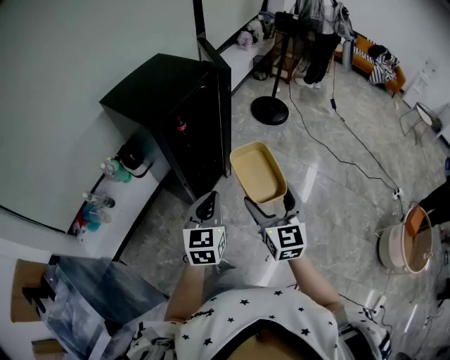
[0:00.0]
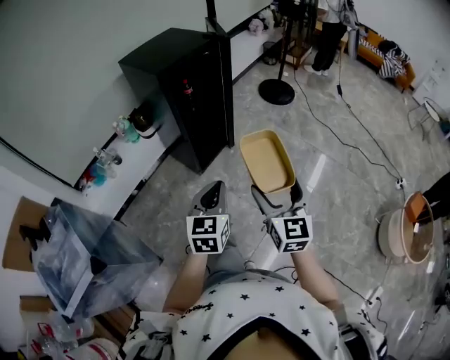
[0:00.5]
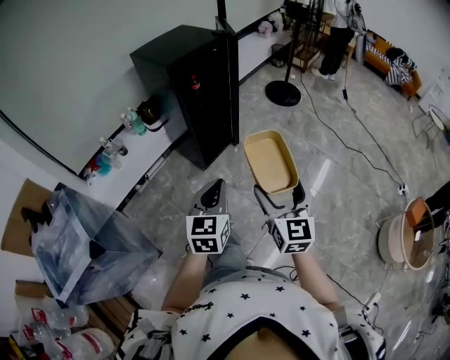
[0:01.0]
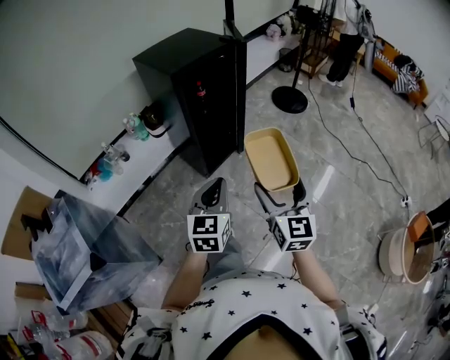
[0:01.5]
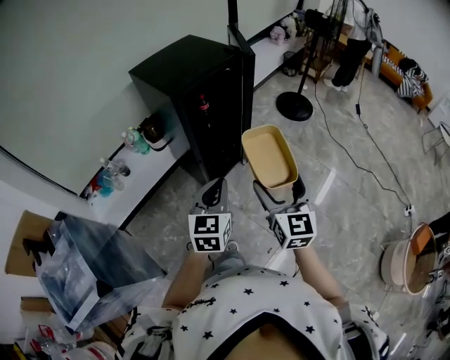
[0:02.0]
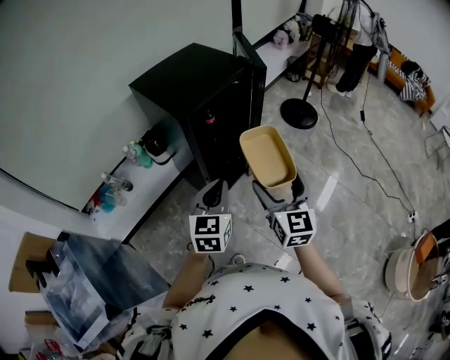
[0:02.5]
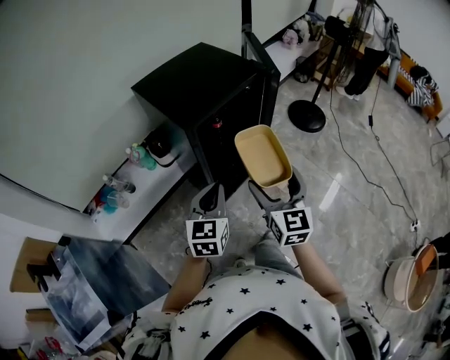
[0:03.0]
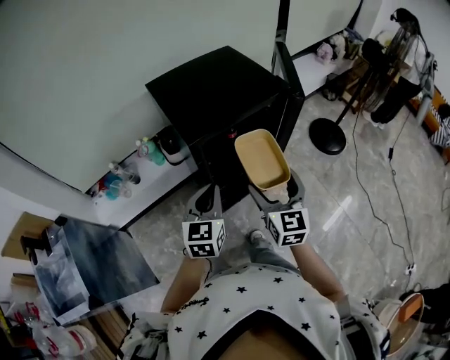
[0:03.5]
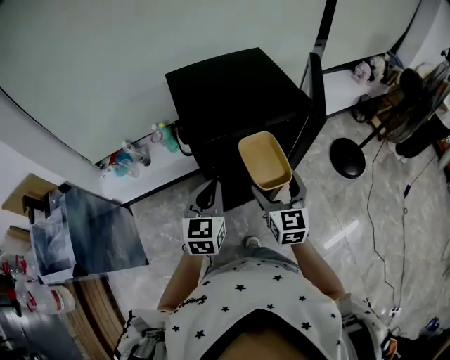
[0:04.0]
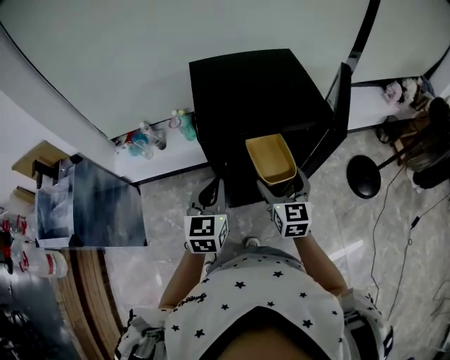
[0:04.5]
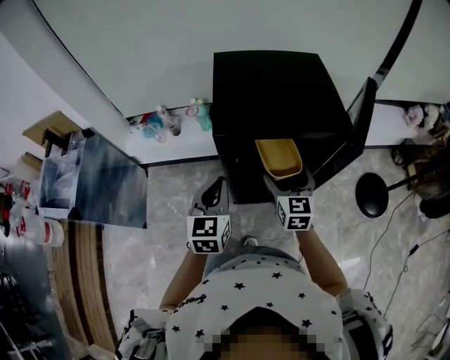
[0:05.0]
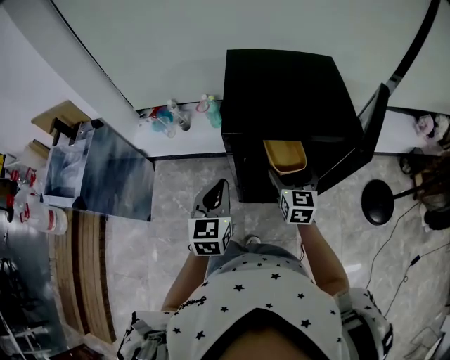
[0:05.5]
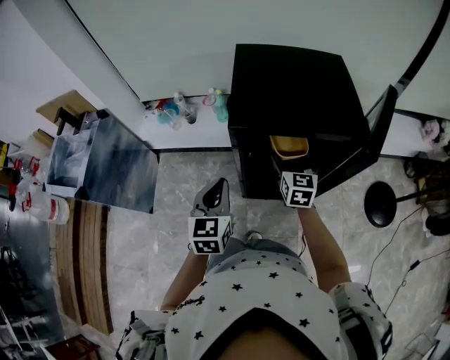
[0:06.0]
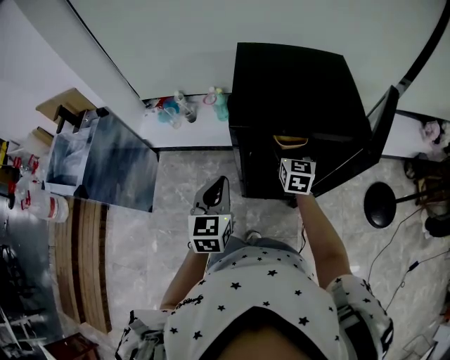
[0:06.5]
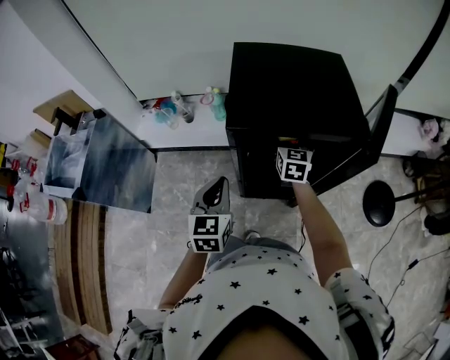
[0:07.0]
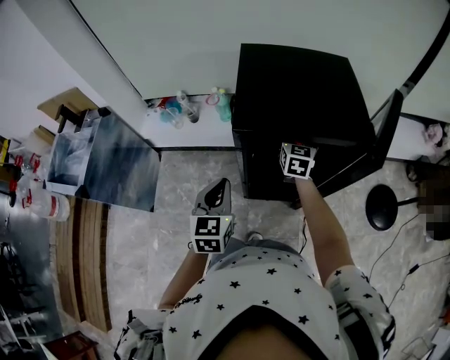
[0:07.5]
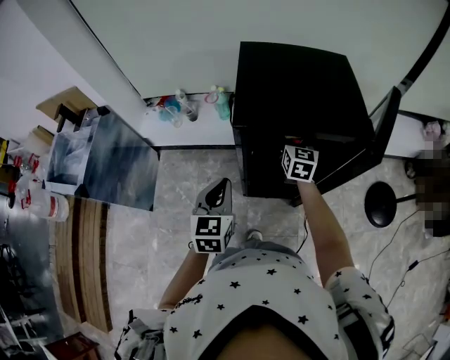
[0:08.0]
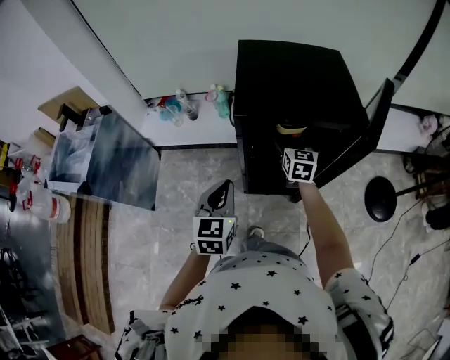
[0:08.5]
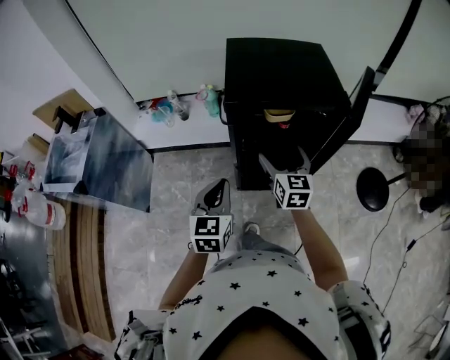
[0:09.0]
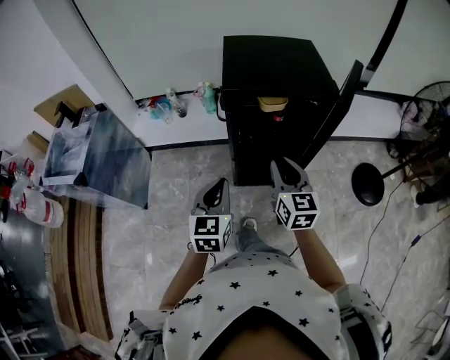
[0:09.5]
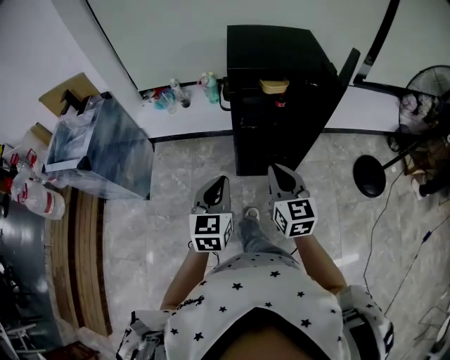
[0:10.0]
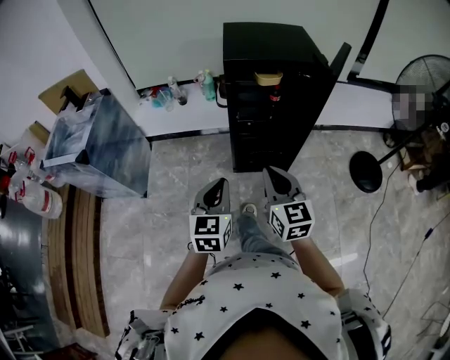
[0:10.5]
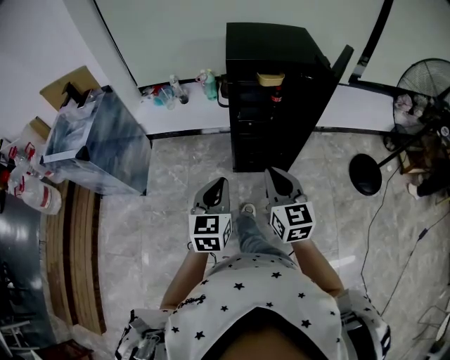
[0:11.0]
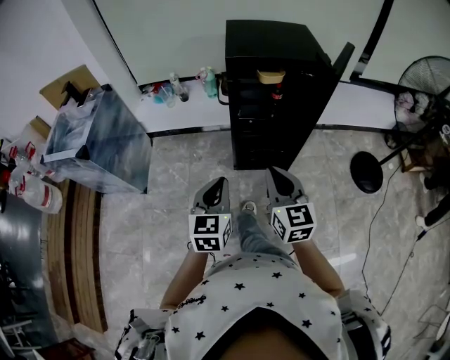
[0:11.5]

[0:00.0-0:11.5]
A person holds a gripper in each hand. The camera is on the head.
0:00.0 to 0:02.0: The left gripper moves approximately 25 cm backward and comes back. The right gripper moves some 25 cm backward and comes back.
0:02.0 to 0:04.0: The left gripper shifts by approximately 25 cm, and rotates approximately 30 degrees; the right gripper moves about 35 cm, and changes its angle by about 30 degrees.
0:04.0 to 0:06.0: The right gripper heads forward and downward, covering approximately 15 cm, while the left gripper moves roughly 5 cm, and rotates about 30 degrees.
0:06.0 to 0:07.5: The right gripper shifts roughly 10 cm forward.
0:07.5 to 0:09.5: The left gripper goes approximately 15 cm backward. The right gripper goes roughly 30 cm backward, and closes its fingers.
0:09.5 to 0:11.5: Both grippers travel together backward, approximately 15 cm.

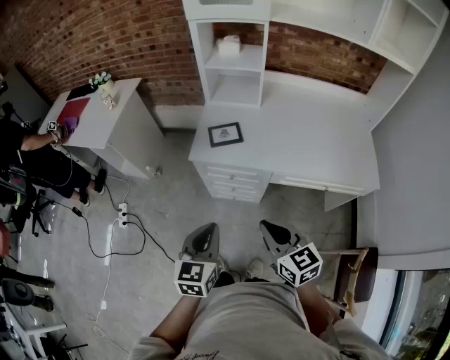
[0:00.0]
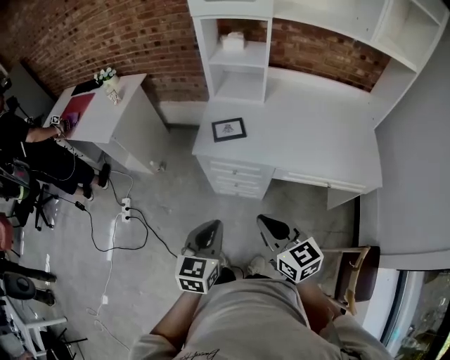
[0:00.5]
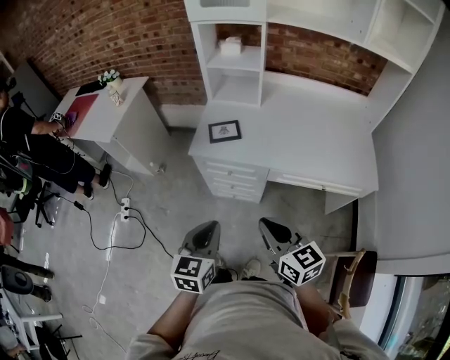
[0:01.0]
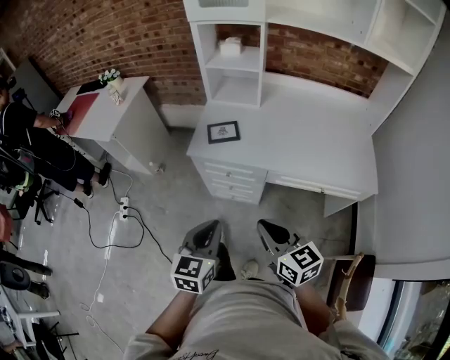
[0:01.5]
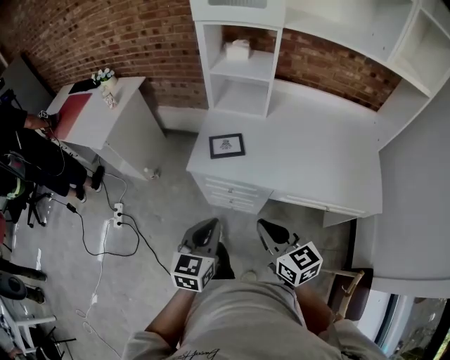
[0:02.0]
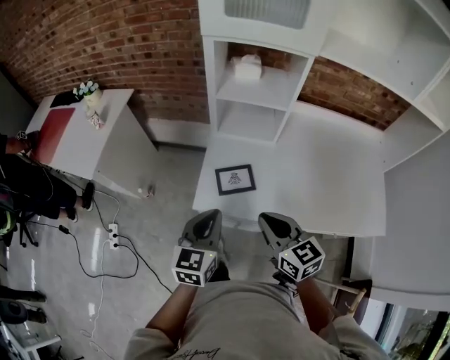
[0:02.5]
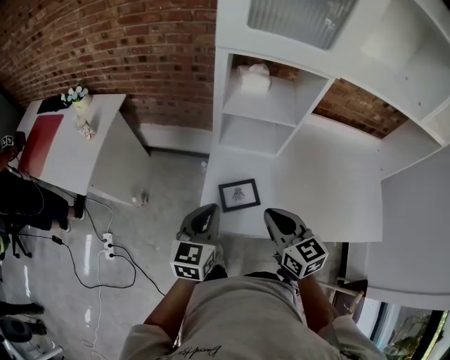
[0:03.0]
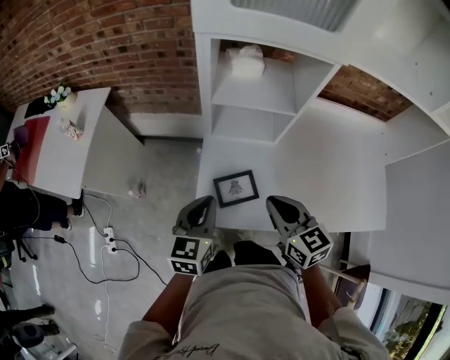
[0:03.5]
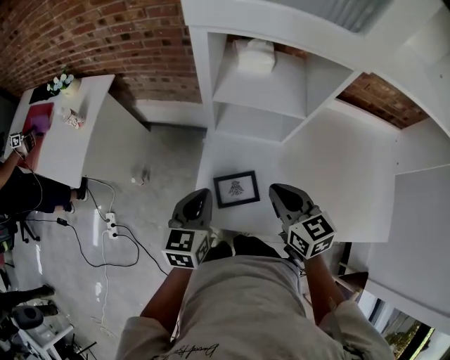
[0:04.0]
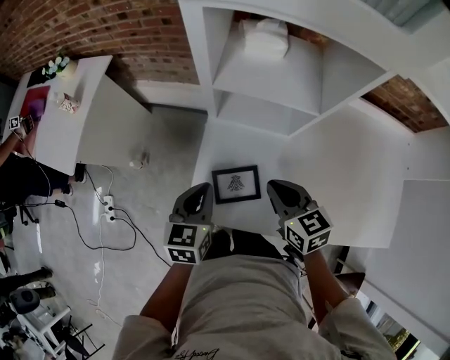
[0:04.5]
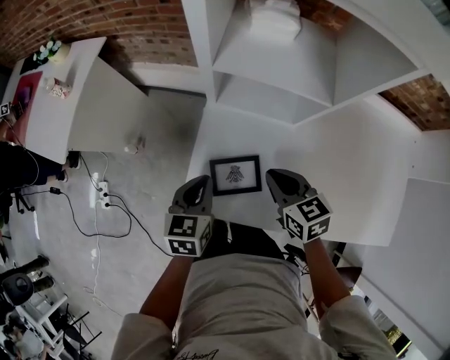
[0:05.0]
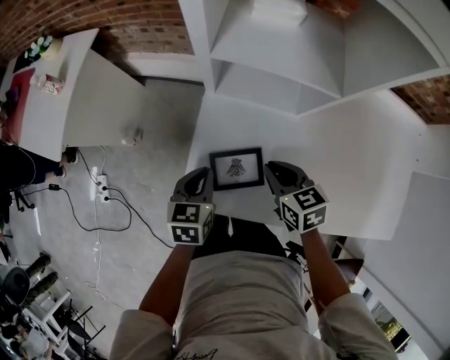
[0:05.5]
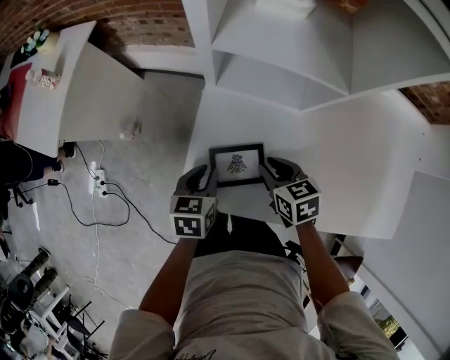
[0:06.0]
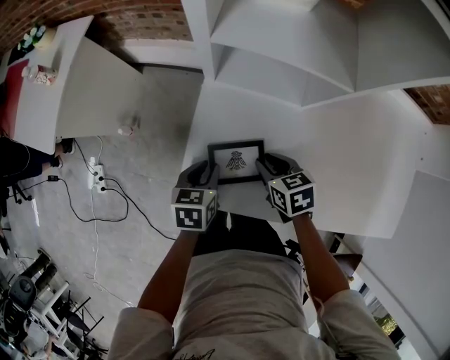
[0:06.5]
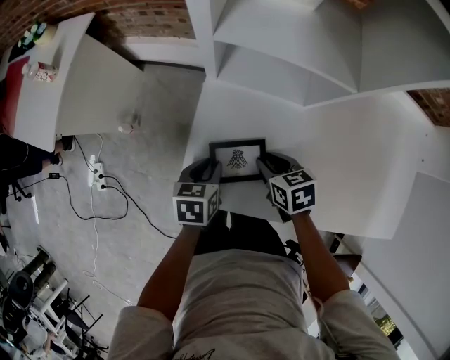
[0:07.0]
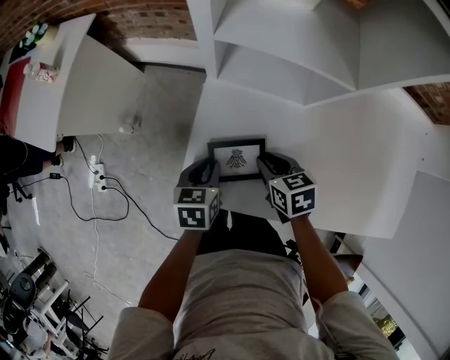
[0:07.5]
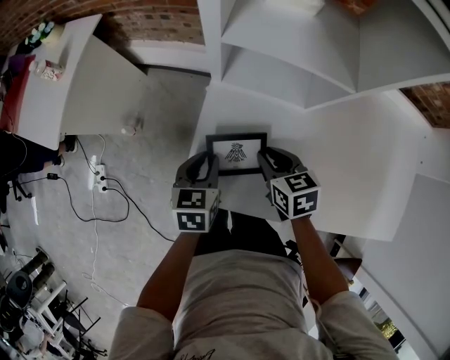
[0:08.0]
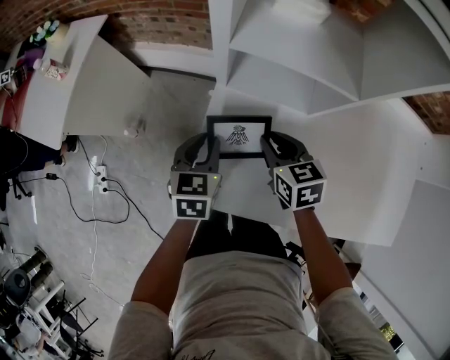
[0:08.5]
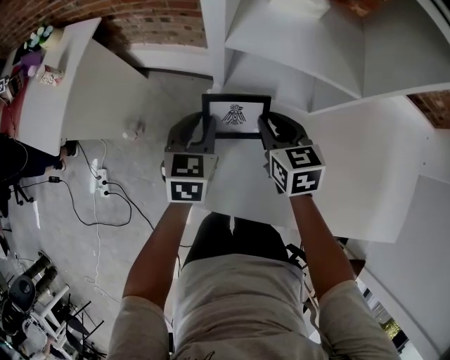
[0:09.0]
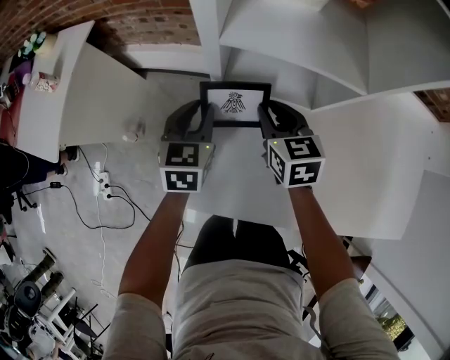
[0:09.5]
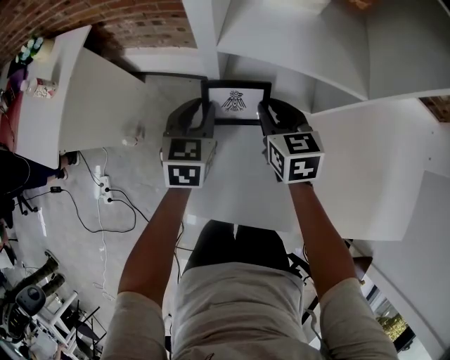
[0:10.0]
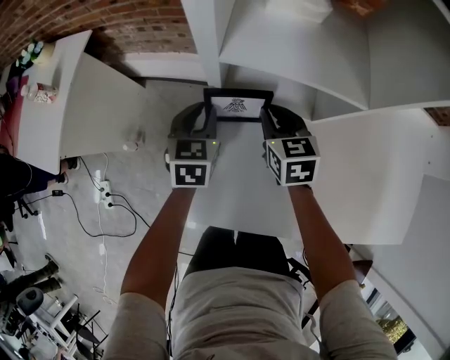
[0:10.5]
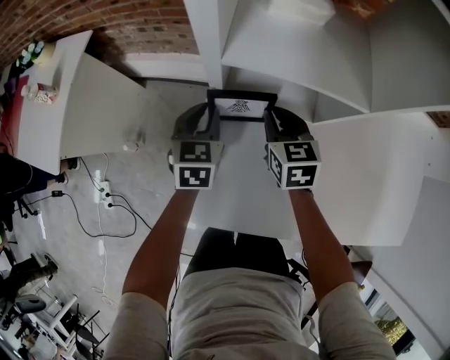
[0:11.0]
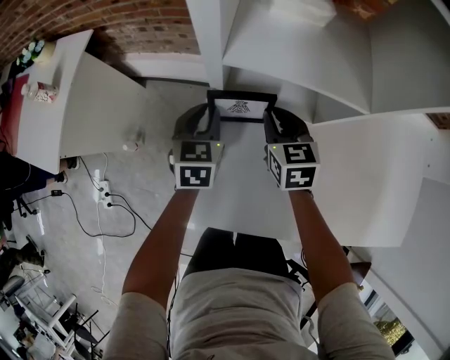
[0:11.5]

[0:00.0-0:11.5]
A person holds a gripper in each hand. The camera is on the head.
0:00.0 to 0:02.0: Both grippers travel together forward, some 10 cm.
0:02.0 to 0:04.0: Both grippers move forward, some 40 cm.
0:04.0 to 0:06.0: Both grippers move downward, about 20 cm. The left gripper turns by roughly 20 degrees; the right gripper swivels roughly 20 degrees.
0:06.0 to 0:07.5: The grippers move only a little.
0:07.5 to 0:09.5: Both grippers move forward and upward, some 15 cm. The left gripper swivels roughly 30 degrees; the right gripper changes its angle by about 20 degrees.
0:09.5 to 0:11.5: There are only small adjustments of the grippers.

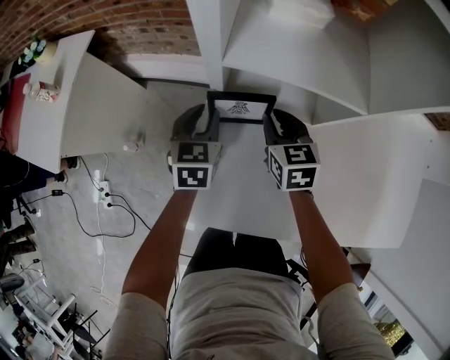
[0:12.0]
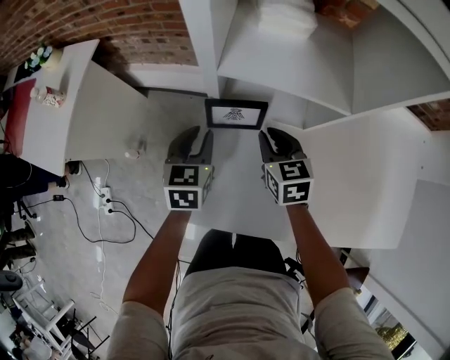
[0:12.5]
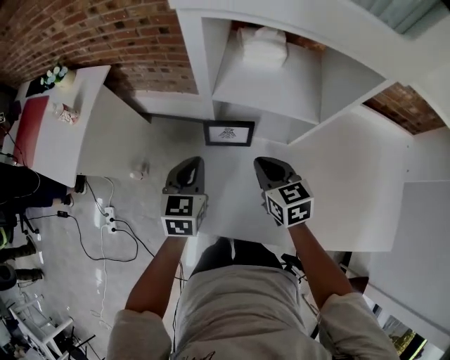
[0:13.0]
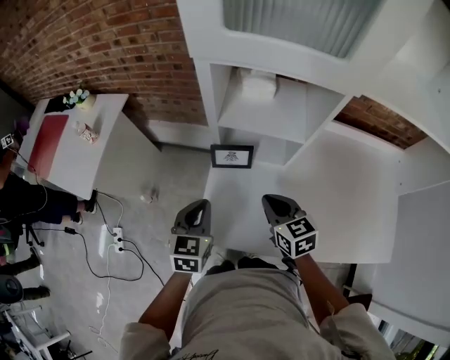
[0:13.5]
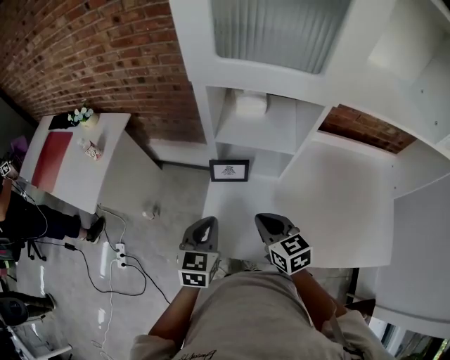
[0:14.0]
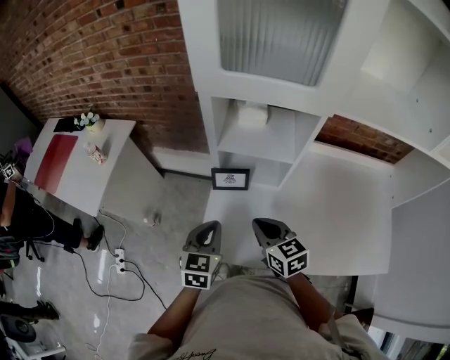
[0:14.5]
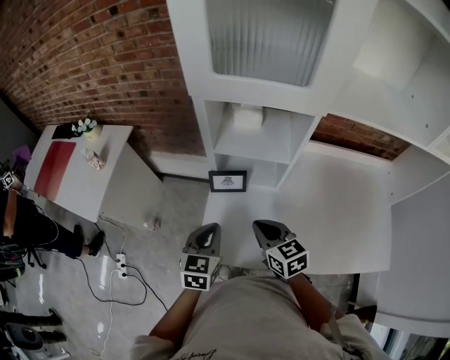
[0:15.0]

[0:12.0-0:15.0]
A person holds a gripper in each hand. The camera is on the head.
0:12.0 to 0:13.5: Both grippers move backward and upward, about 25 cm. The left gripper closes.
0:13.5 to 0:15.0: The left gripper moves approximately 5 cm. Meanwhile the right gripper moves about 5 cm.

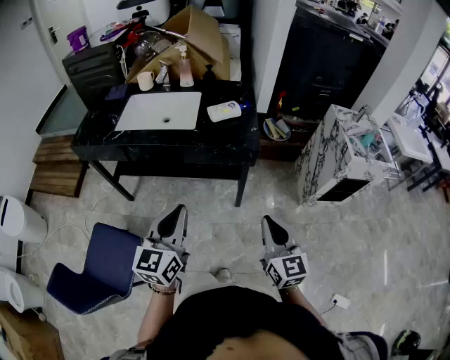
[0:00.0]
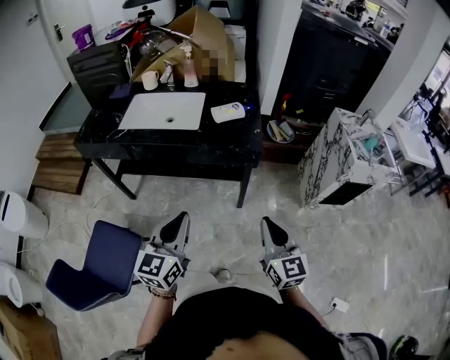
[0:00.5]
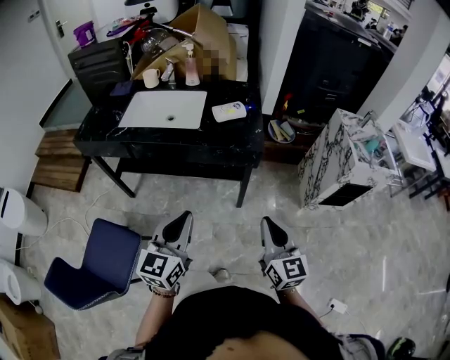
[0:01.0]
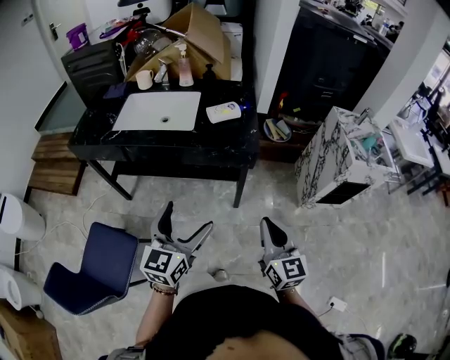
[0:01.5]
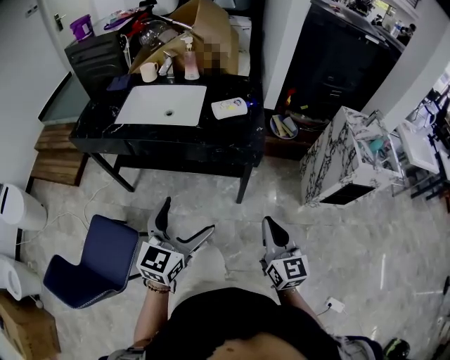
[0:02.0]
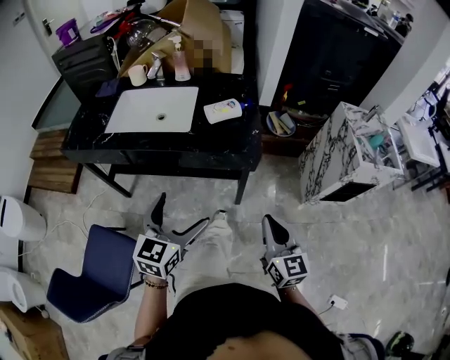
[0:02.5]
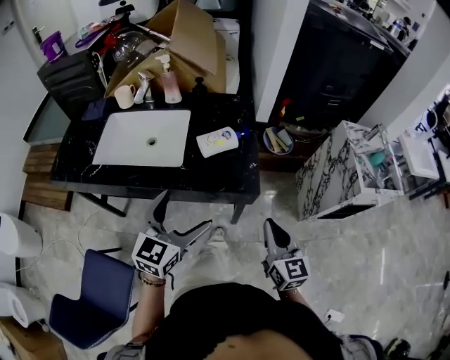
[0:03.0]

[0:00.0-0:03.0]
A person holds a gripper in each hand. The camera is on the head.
0:00.0 to 0:01.5: The left gripper opens.
0:01.5 to 0:03.0: Both grippers move forward, about 20 cm.
